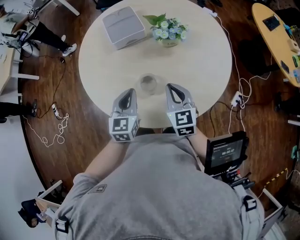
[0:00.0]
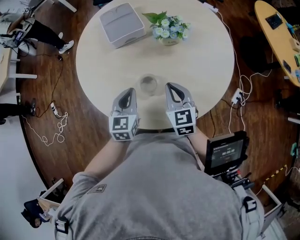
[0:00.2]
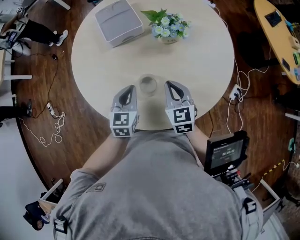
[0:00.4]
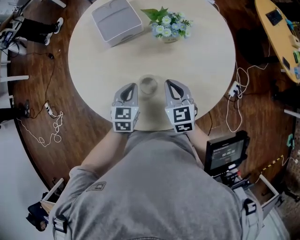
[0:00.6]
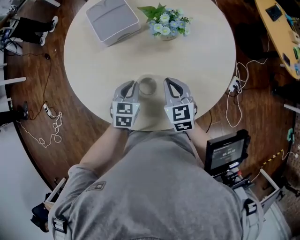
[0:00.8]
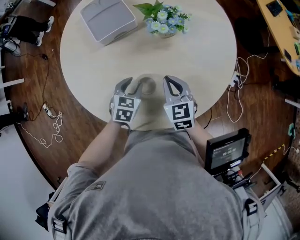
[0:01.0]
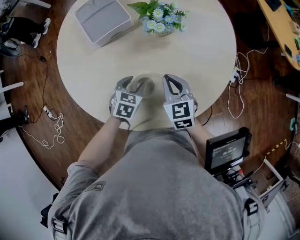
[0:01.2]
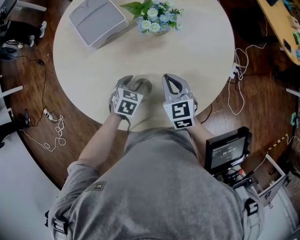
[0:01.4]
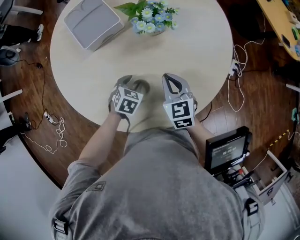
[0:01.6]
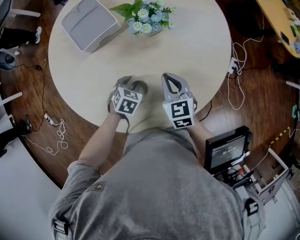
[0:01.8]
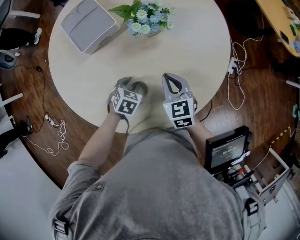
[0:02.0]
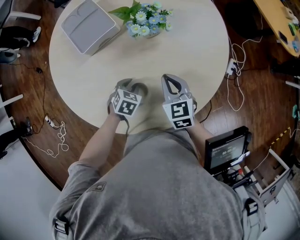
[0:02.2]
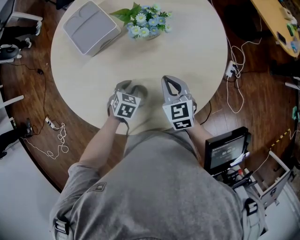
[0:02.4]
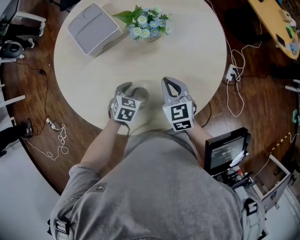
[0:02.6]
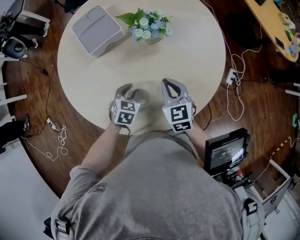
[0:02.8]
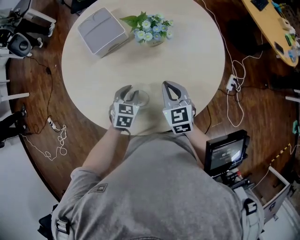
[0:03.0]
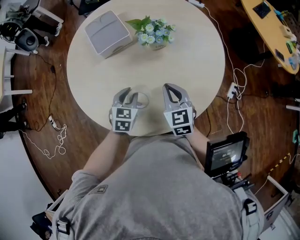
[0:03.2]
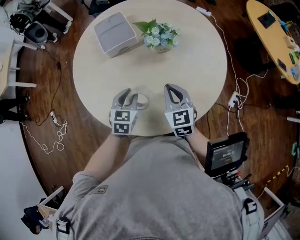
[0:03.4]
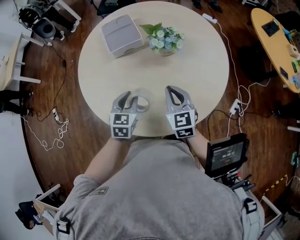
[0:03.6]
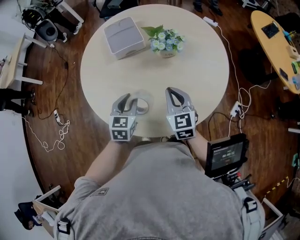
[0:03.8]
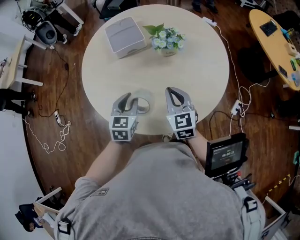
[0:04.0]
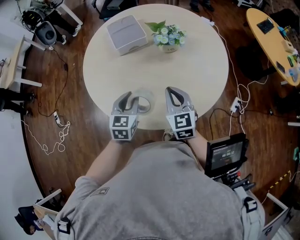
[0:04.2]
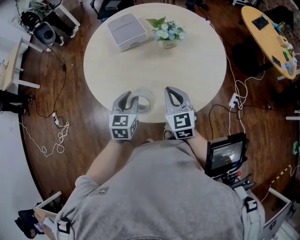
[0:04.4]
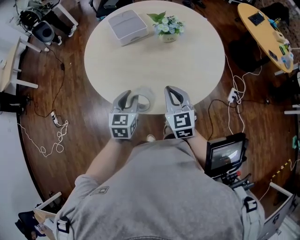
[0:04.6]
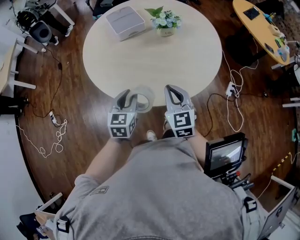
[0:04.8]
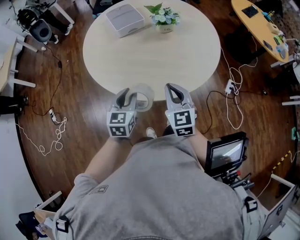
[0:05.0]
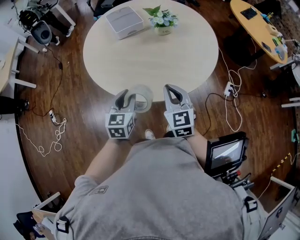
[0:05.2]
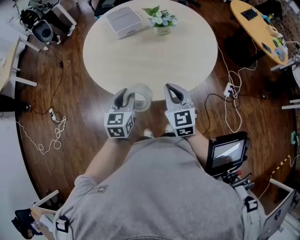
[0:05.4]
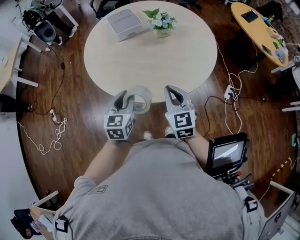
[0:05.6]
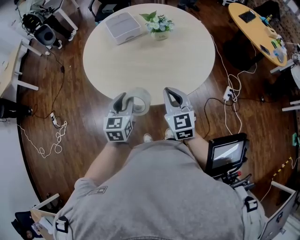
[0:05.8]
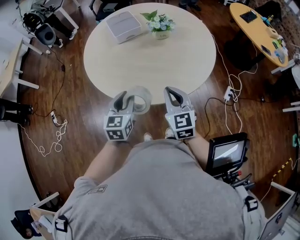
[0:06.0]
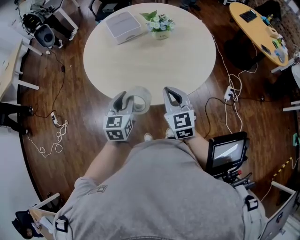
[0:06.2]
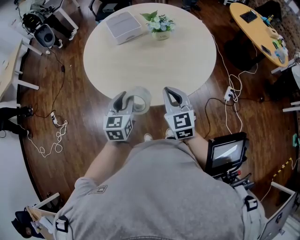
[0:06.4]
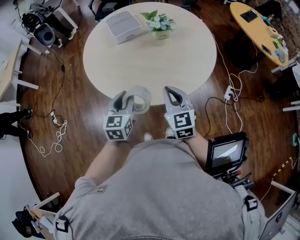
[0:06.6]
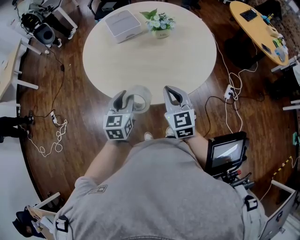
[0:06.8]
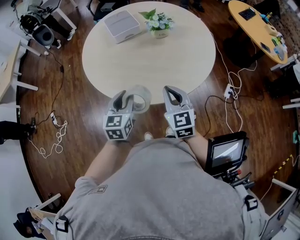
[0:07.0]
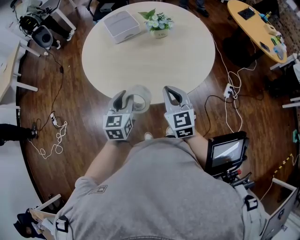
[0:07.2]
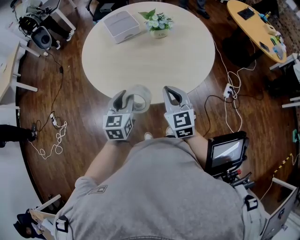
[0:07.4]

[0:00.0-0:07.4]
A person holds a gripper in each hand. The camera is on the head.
0:00.0 to 0:01.4: The left gripper goes approximately 20 cm downward, tips its fingers downward by approximately 40 degrees, and opens up. The right gripper moves downward and forward, roughly 10 cm.
0:01.4 to 0:03.0: The left gripper travels upward by about 5 cm, and closes up, while the right gripper shifts by roughly 5 cm.
0:03.0 to 0:04.4: The right gripper moves backward, upward and to the left, roughly 15 cm. The left gripper goes roughly 15 cm upward, backward and to the left, and rotates approximately 30 degrees.
0:04.4 to 0:06.0: Both grippers move backward, about 10 cm.
0:06.0 to 0:07.4: Both grippers stay put.

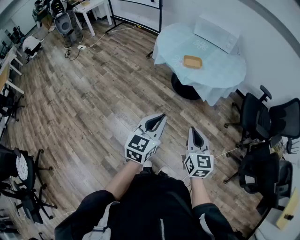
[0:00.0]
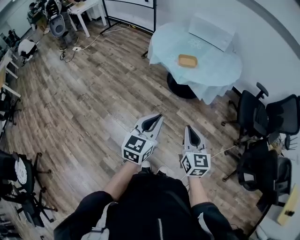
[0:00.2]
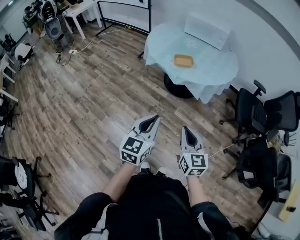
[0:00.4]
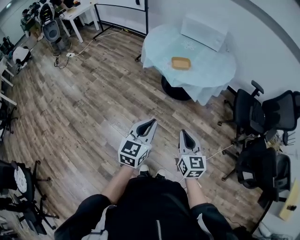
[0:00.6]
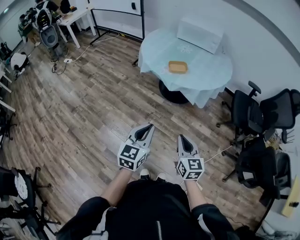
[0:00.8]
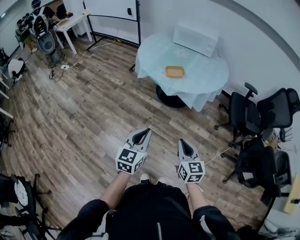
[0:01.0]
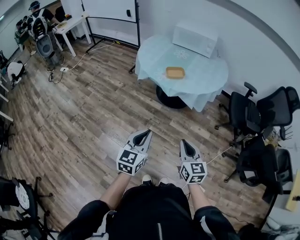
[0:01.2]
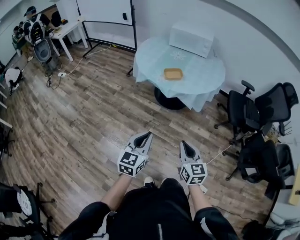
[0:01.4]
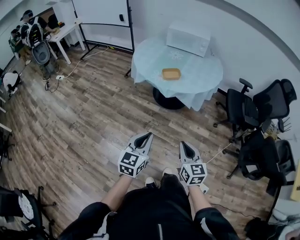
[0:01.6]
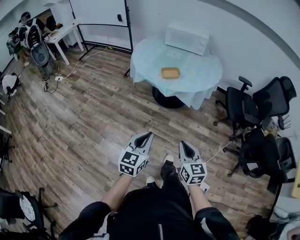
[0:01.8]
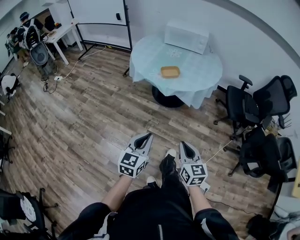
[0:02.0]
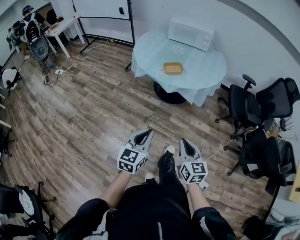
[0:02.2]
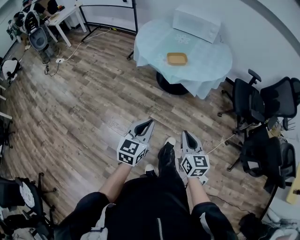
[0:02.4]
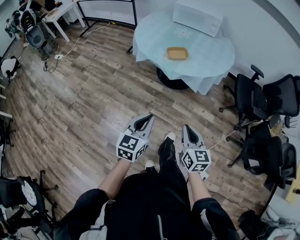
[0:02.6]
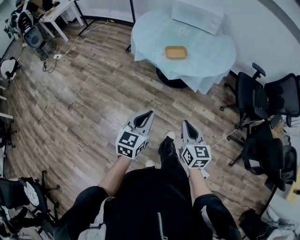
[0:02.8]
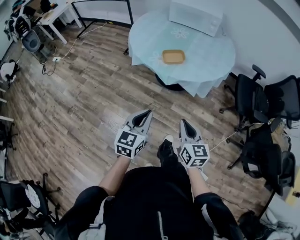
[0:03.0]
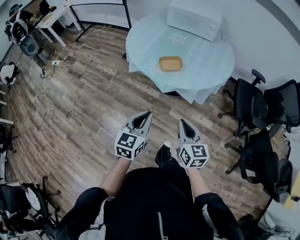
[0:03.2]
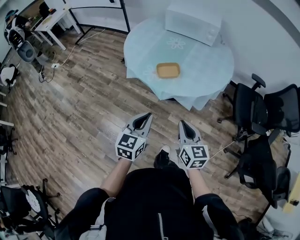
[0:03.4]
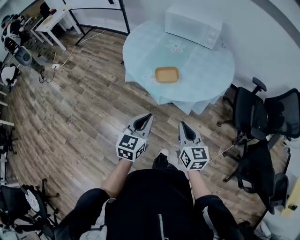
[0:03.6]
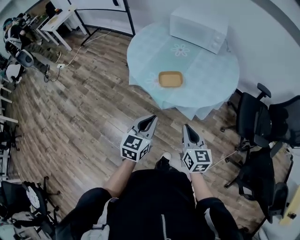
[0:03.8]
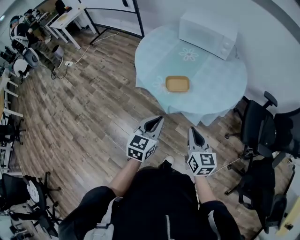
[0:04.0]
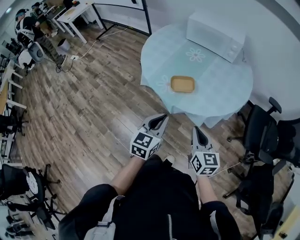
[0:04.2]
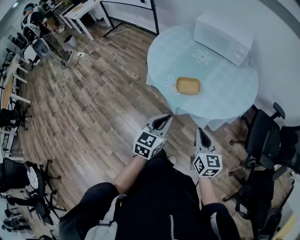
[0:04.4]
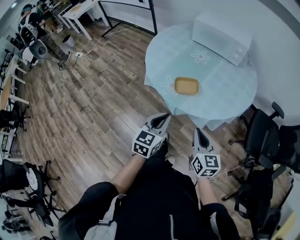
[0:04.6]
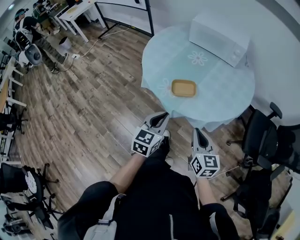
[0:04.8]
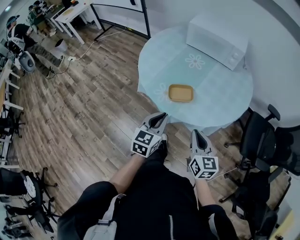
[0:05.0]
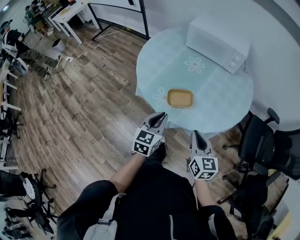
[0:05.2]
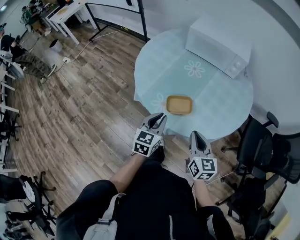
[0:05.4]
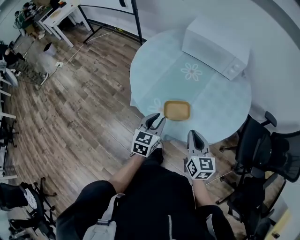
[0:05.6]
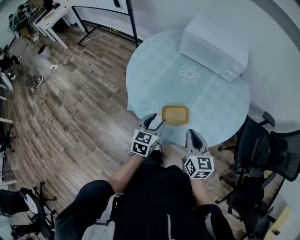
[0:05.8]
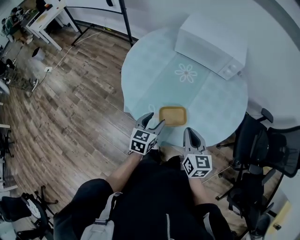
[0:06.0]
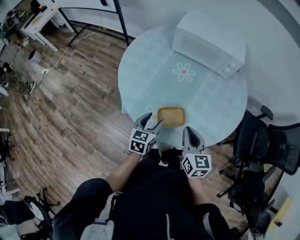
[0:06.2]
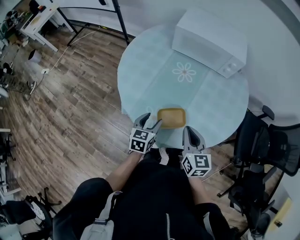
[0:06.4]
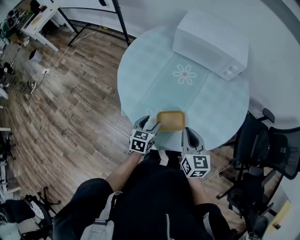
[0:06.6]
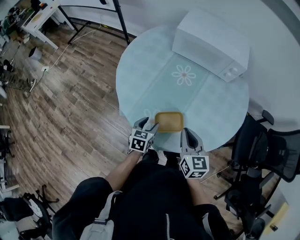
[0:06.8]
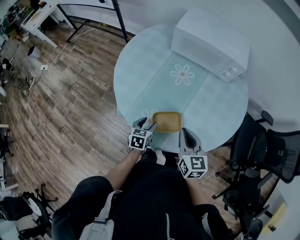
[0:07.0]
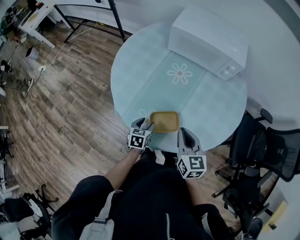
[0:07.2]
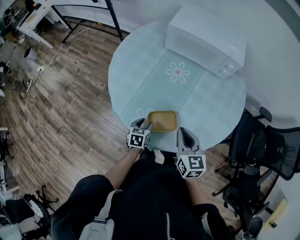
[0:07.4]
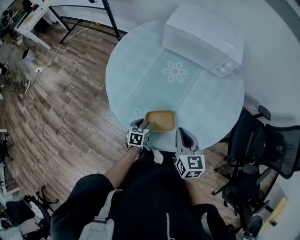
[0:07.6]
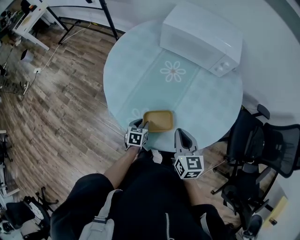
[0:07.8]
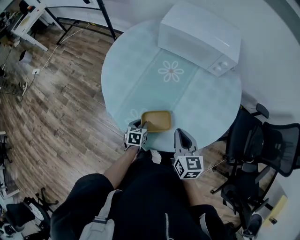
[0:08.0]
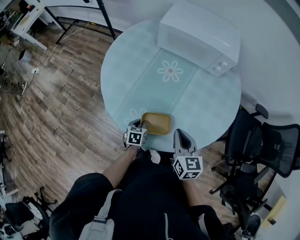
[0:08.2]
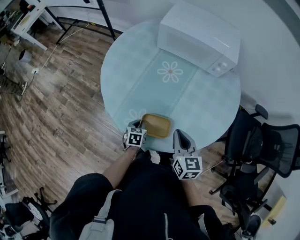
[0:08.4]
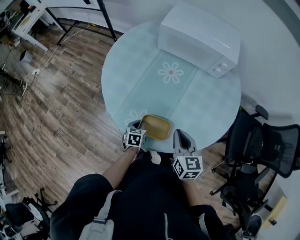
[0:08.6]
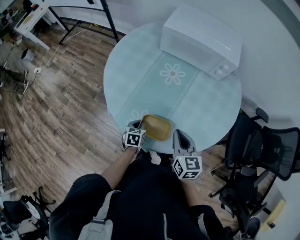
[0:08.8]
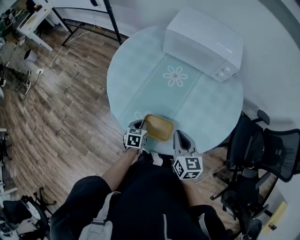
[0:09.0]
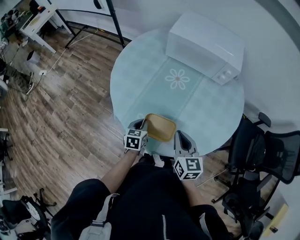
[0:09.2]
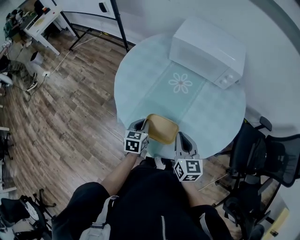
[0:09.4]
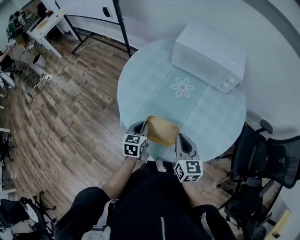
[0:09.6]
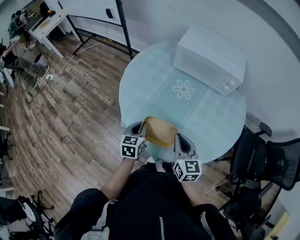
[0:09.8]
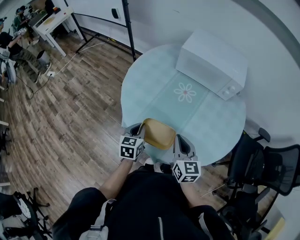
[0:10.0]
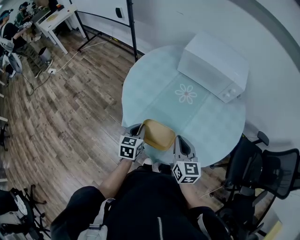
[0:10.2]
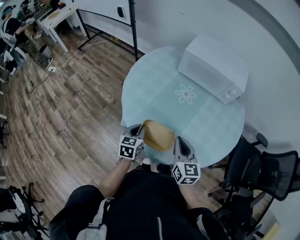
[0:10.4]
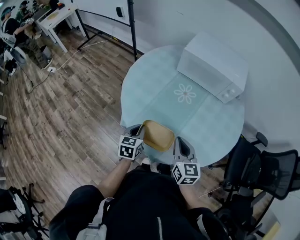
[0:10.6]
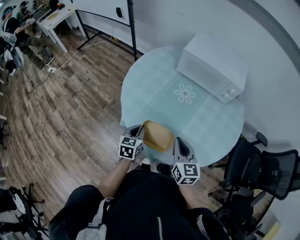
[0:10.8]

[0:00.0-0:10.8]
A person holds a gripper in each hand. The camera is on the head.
0:00.0 to 0:01.6: The left gripper changes place by some 5 cm.
0:01.6 to 0:03.0: The two grippers go roughly 15 cm forward.
0:03.0 to 0:04.6: Both grippers travel together forward, about 20 cm.
0:04.6 to 0:06.2: The left gripper heads forward and downward, covering about 30 cm, and opens its fingers. The right gripper travels forward by about 25 cm.
0:06.2 to 0:07.8: The left gripper travels downward by some 15 cm, turns by approximately 20 degrees, and closes, while the right gripper ends up roughly 5 cm from where it was.
0:07.8 to 0:09.2: The left gripper is displaced upward by roughly 5 cm, and closes.
0:09.2 to 0:10.8: The left gripper moves upward and to the left, approximately 10 cm.

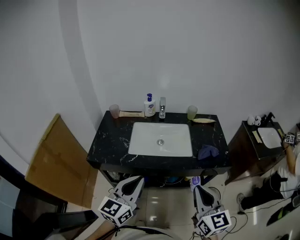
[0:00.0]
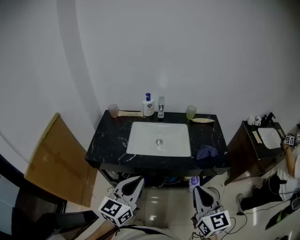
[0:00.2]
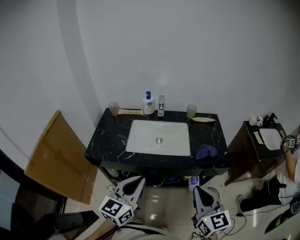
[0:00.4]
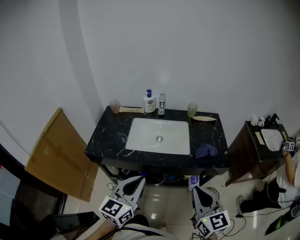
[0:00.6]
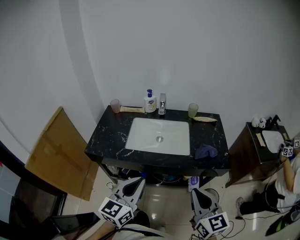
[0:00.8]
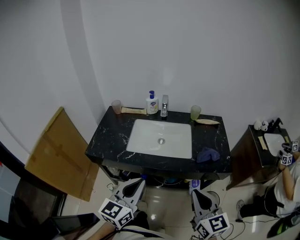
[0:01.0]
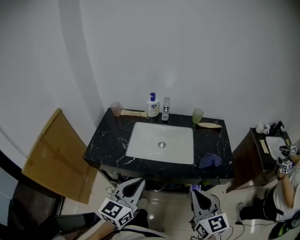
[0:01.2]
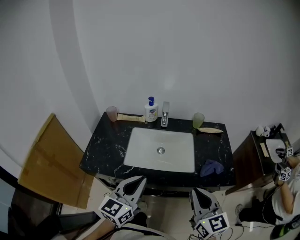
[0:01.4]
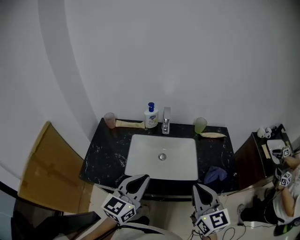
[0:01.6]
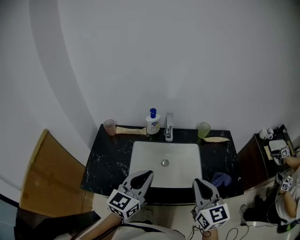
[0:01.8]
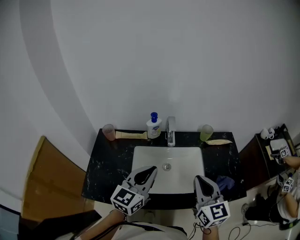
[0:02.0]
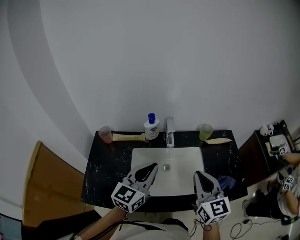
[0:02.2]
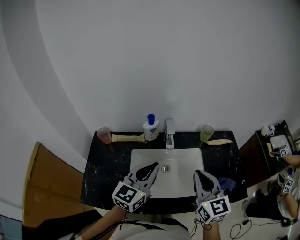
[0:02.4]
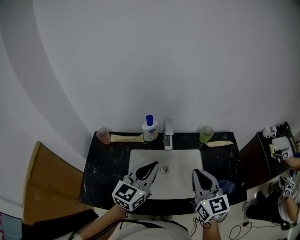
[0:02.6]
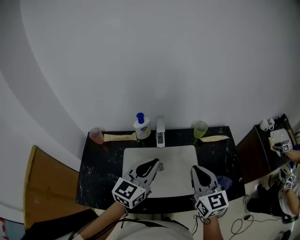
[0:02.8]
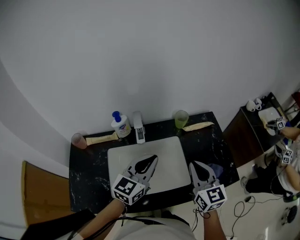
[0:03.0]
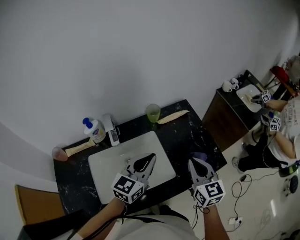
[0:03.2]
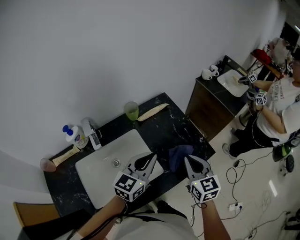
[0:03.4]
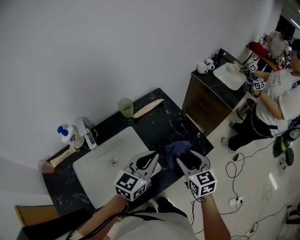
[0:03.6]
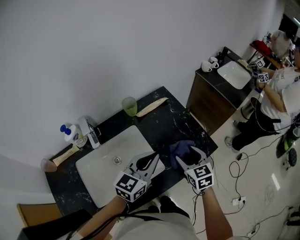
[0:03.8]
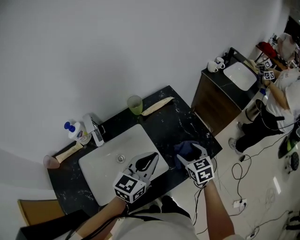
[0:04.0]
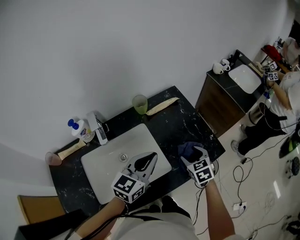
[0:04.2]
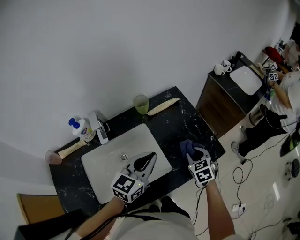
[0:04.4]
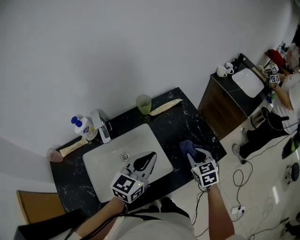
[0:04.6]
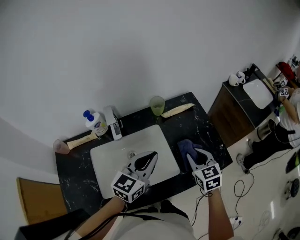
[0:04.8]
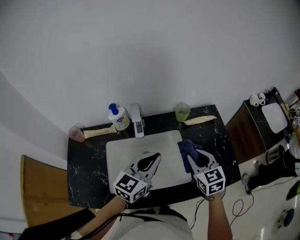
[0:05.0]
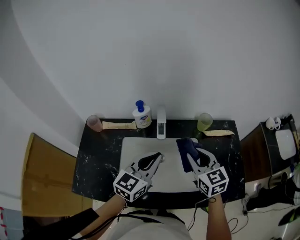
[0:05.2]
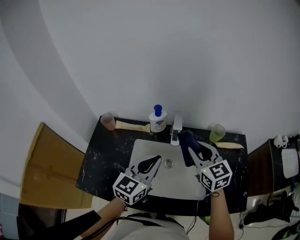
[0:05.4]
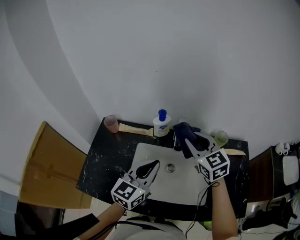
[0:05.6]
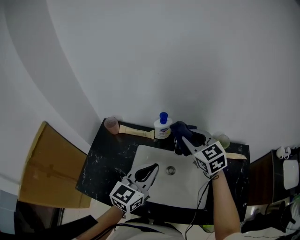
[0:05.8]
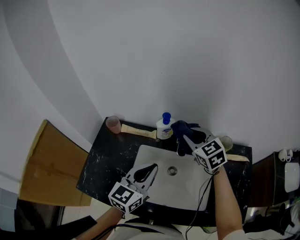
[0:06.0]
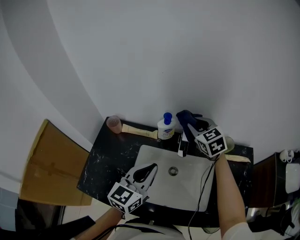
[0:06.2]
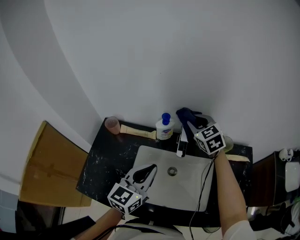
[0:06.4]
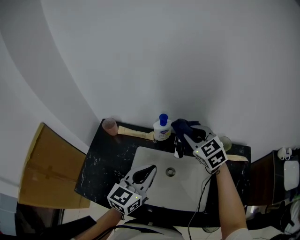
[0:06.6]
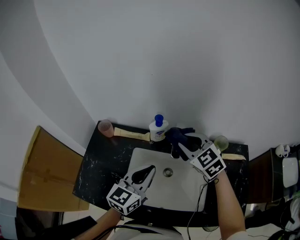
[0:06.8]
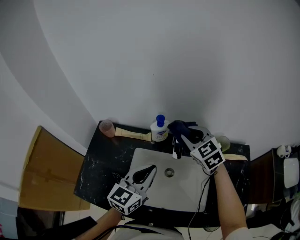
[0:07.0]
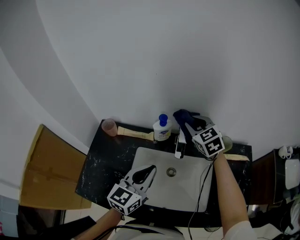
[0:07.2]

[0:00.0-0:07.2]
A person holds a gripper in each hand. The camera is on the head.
0:00.0 to 0:01.4: Both grippers move forward, about 10 cm.
0:01.4 to 0:02.8: The grippers both shift forward by roughly 25 cm.
0:02.8 to 0:04.4: The right gripper heads downward, covering about 25 cm, tilts its fingers approximately 40 degrees downward, and opens up; the left gripper changes place by some 20 cm, and changes its angle by roughly 30 degrees.
0:04.4 to 0:05.8: The right gripper shifts by some 50 cm, and rotates approximately 60 degrees. Meanwhile the left gripper changes place by about 25 cm, and turns by some 40 degrees.
0:05.8 to 0:07.2: The right gripper moves forward and backward over approximately 10 cm, changing direction 2 times.
